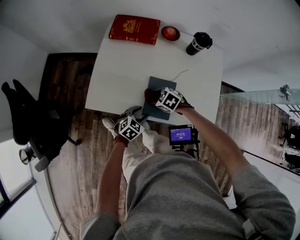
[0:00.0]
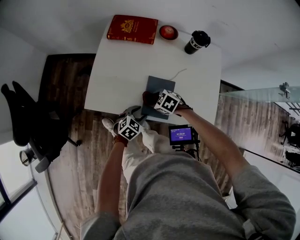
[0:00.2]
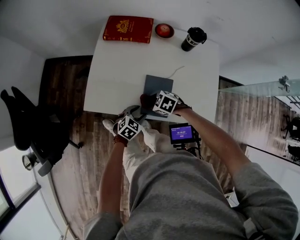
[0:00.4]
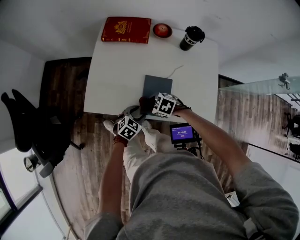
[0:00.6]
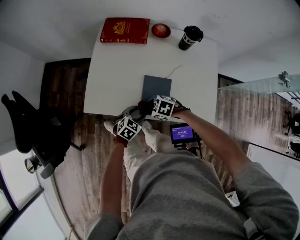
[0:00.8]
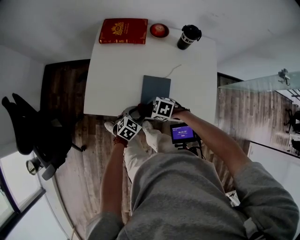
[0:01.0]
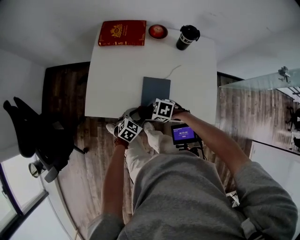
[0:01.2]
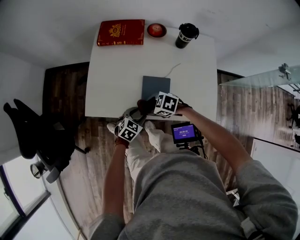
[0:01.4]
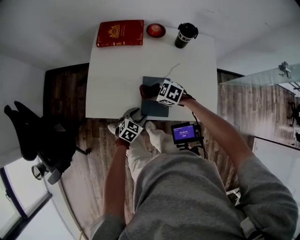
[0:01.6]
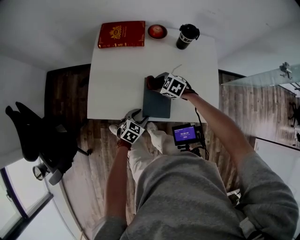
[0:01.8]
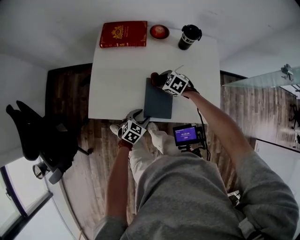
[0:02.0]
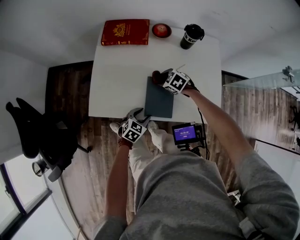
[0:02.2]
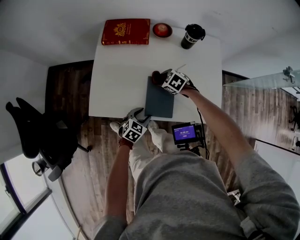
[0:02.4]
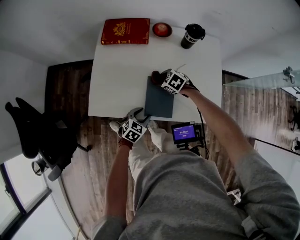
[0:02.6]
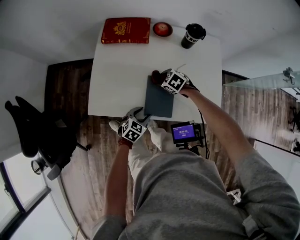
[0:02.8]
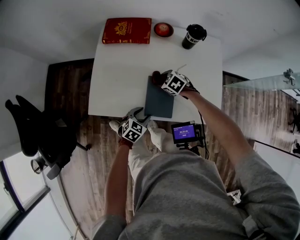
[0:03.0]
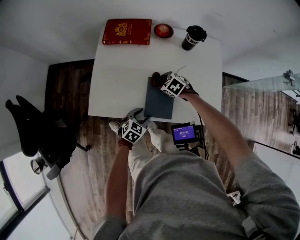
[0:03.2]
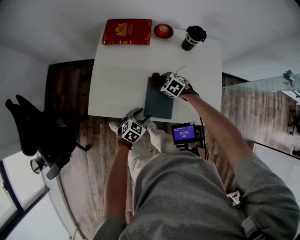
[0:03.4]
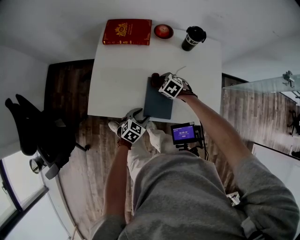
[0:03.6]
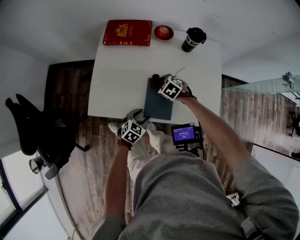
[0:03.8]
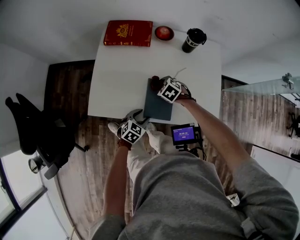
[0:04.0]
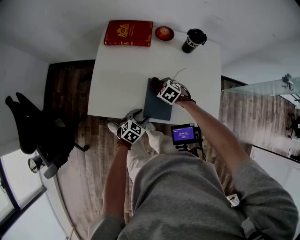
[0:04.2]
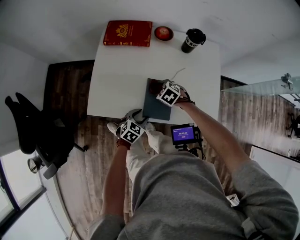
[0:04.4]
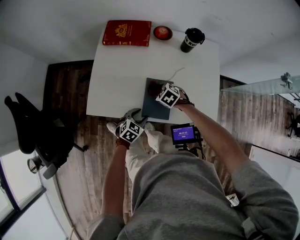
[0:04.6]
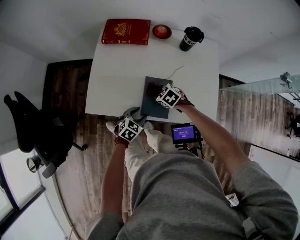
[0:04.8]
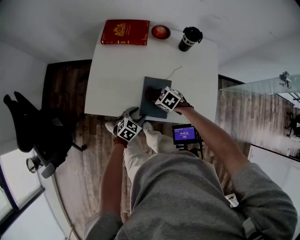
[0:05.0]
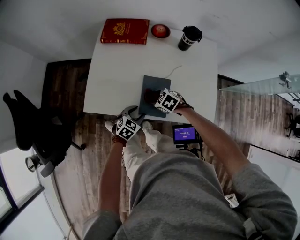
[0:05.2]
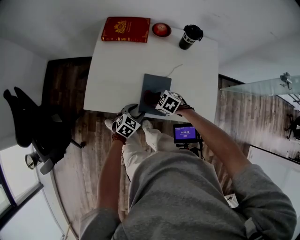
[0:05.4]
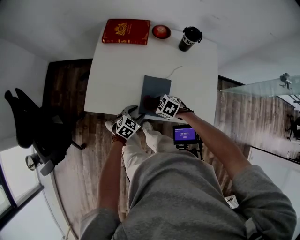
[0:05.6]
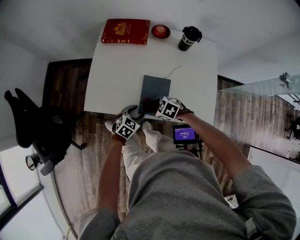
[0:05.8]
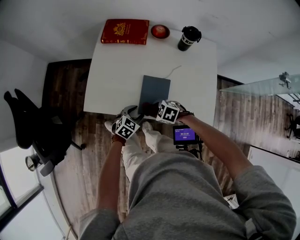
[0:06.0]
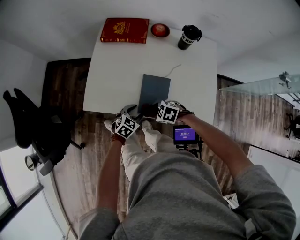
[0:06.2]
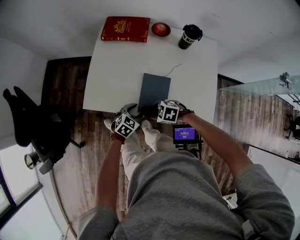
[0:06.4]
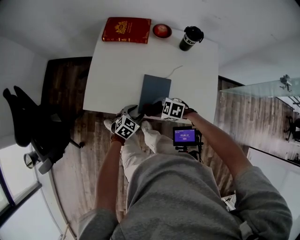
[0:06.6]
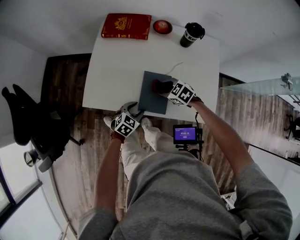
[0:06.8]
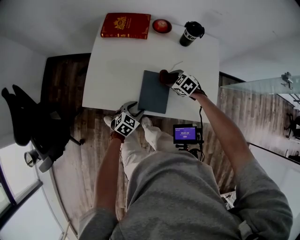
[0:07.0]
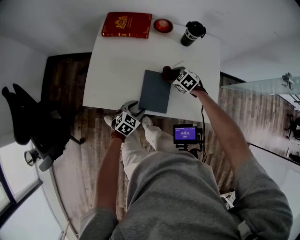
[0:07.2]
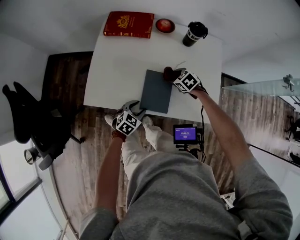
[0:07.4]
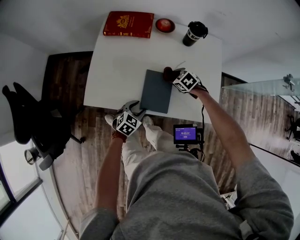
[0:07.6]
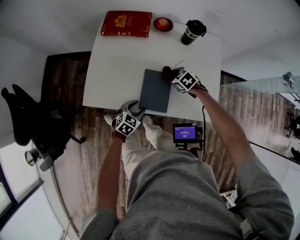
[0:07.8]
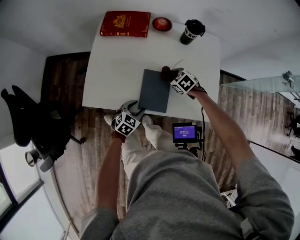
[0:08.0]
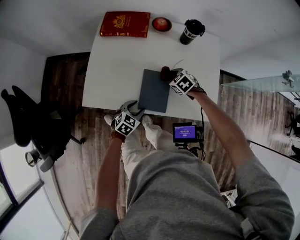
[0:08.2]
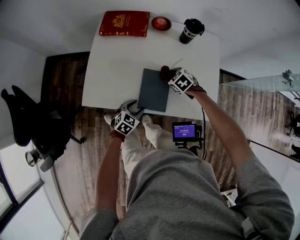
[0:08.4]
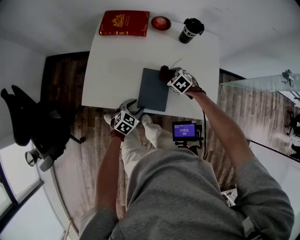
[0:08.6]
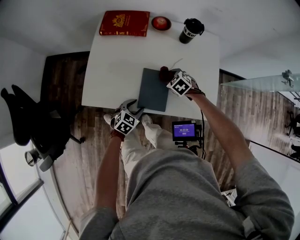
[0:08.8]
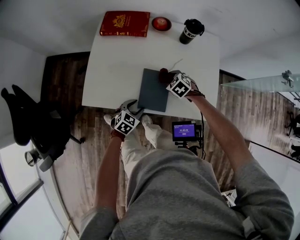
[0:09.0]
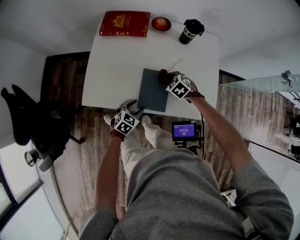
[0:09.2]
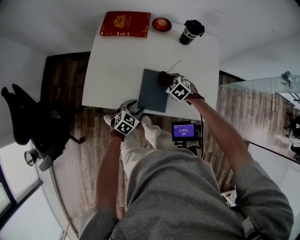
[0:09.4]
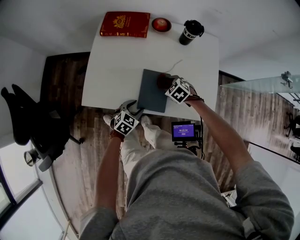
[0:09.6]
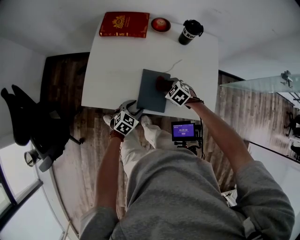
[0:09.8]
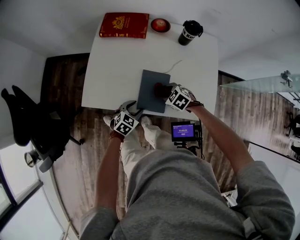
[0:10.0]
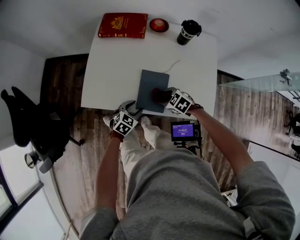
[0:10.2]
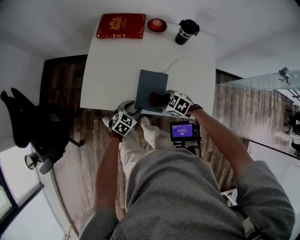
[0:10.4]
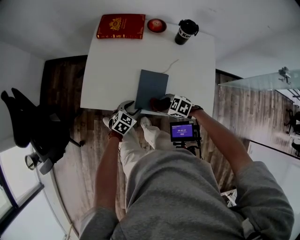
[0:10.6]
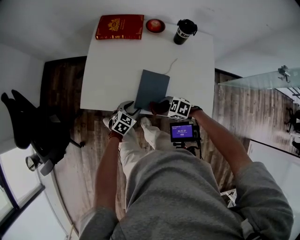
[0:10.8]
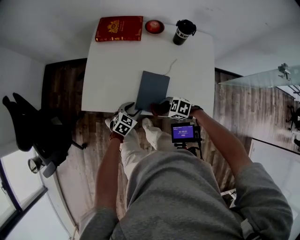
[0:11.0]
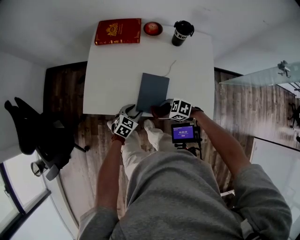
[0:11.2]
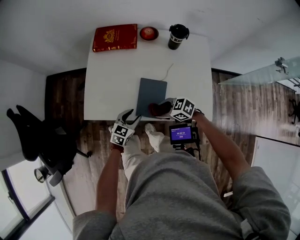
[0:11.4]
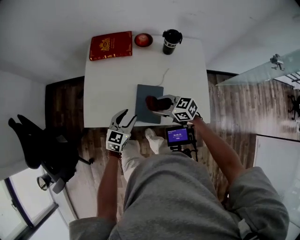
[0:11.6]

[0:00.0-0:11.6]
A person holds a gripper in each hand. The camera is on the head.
0:00.0 to 0:01.4: The right gripper shifts by about 5 cm.
0:01.4 to 0:02.8: The right gripper shifts by roughly 15 cm, and changes its angle by some 20 degrees.
0:02.8 to 0:04.4: The grippers stay close to where they were, moving slightly.
0:04.4 to 0:05.8: The right gripper changes place by roughly 10 cm.
0:05.8 to 0:07.2: The right gripper moves approximately 20 cm.
0:07.2 to 0:08.8: The grippers move only a little.
0:08.8 to 0:10.2: The right gripper is displaced backward by about 10 cm.
0:10.2 to 0:11.6: Both grippers travel together upward, about 15 cm. The left gripper swivels about 20 degrees; the right gripper tips its fingers upward by about 30 degrees.

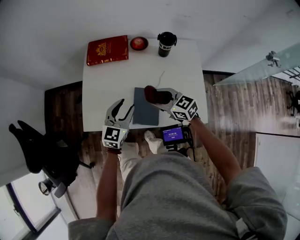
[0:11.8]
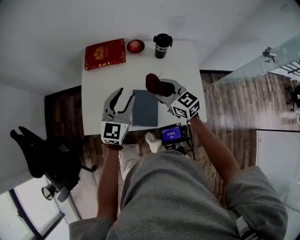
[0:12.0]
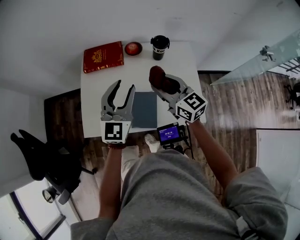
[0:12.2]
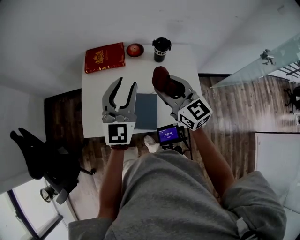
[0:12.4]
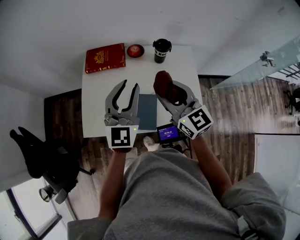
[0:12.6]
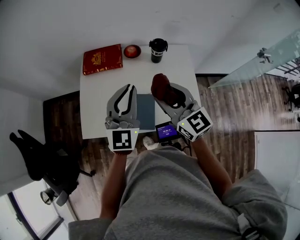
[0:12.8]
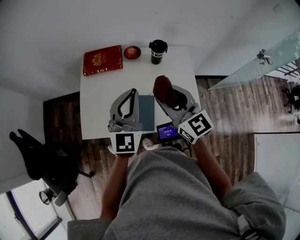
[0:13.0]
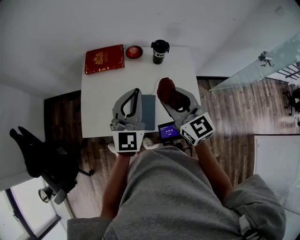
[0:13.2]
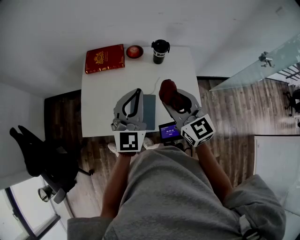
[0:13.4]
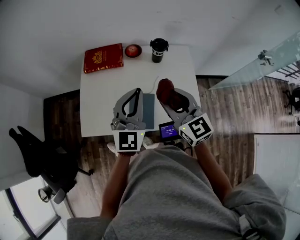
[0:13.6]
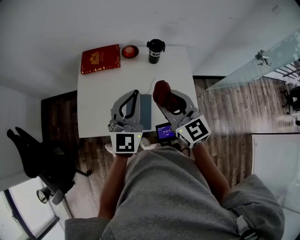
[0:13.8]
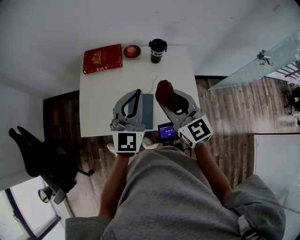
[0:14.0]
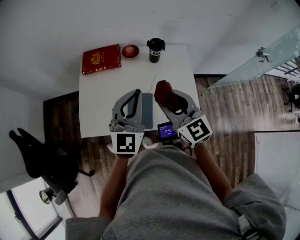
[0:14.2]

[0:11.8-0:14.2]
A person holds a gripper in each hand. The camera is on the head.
0:11.8 to 0:13.0: Both grippers travel together upward, approximately 20 cm. The left gripper turns by about 30 degrees, and closes. The right gripper rotates approximately 30 degrees.
0:13.0 to 0:14.2: The grippers move only a little.

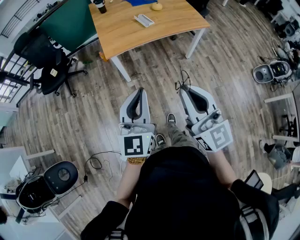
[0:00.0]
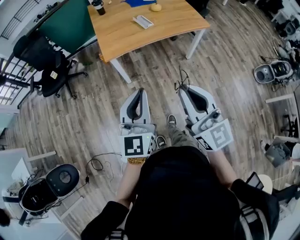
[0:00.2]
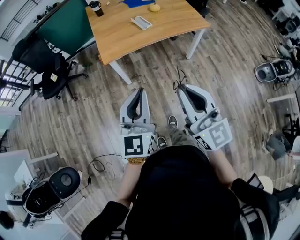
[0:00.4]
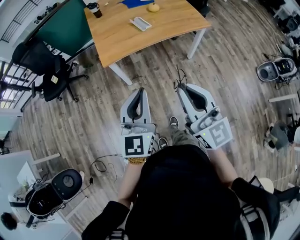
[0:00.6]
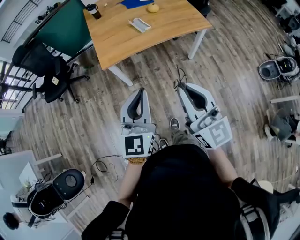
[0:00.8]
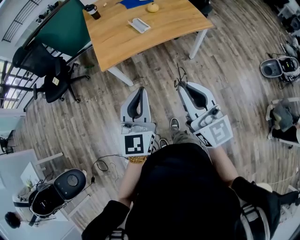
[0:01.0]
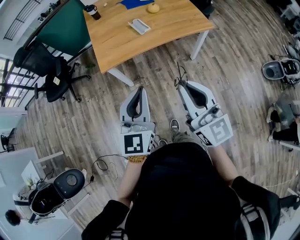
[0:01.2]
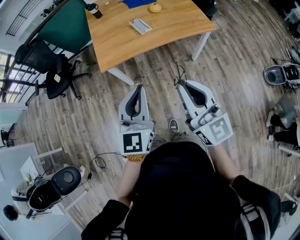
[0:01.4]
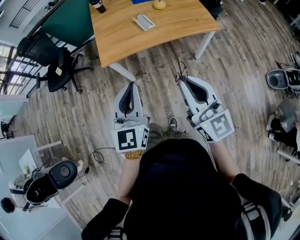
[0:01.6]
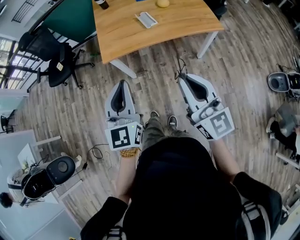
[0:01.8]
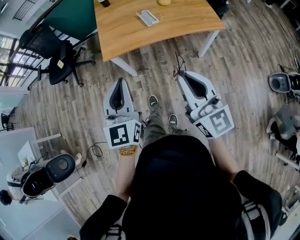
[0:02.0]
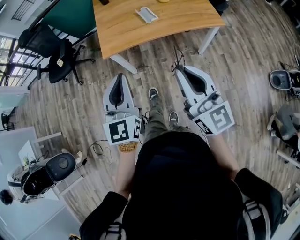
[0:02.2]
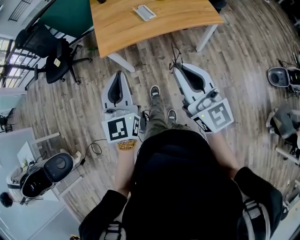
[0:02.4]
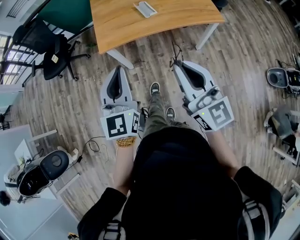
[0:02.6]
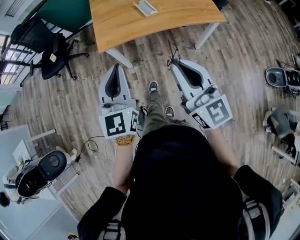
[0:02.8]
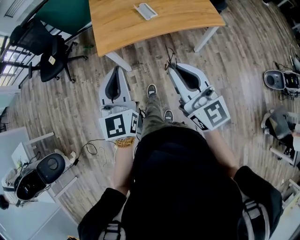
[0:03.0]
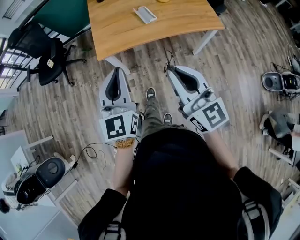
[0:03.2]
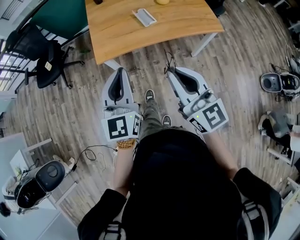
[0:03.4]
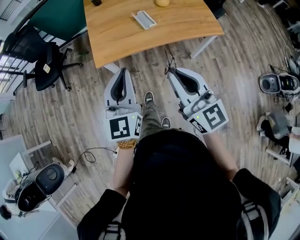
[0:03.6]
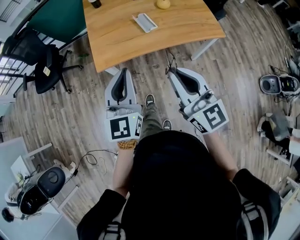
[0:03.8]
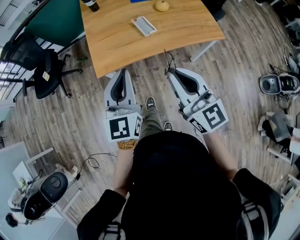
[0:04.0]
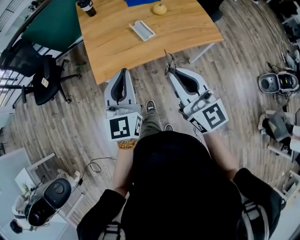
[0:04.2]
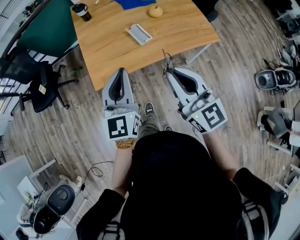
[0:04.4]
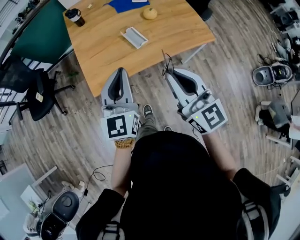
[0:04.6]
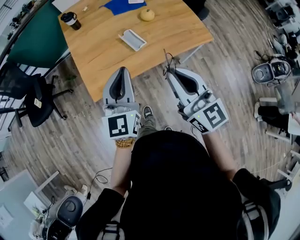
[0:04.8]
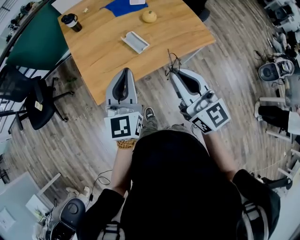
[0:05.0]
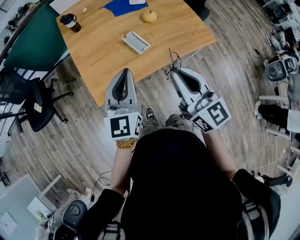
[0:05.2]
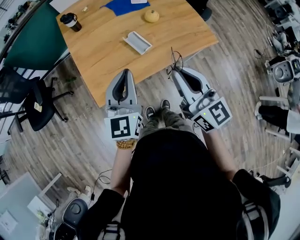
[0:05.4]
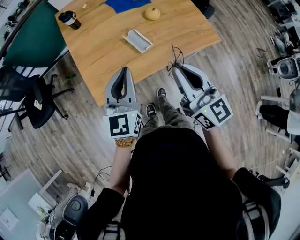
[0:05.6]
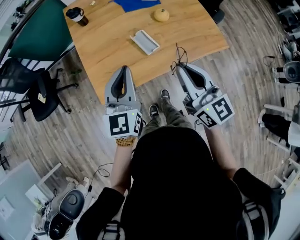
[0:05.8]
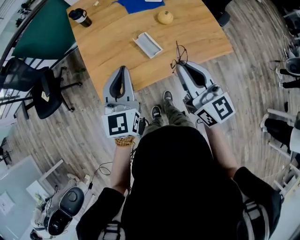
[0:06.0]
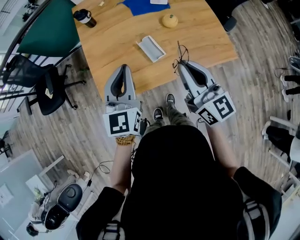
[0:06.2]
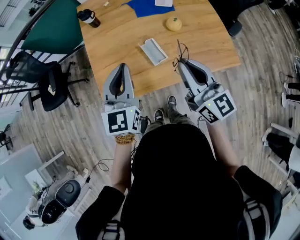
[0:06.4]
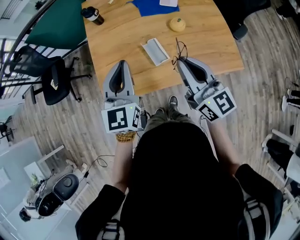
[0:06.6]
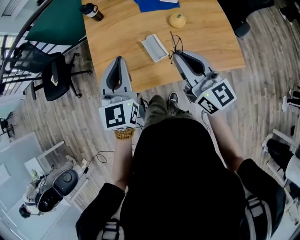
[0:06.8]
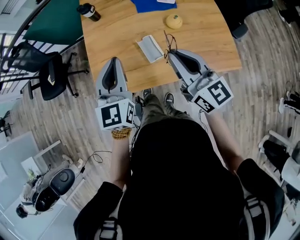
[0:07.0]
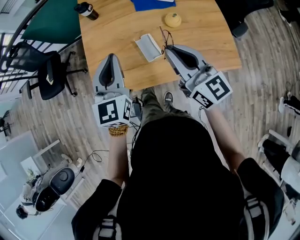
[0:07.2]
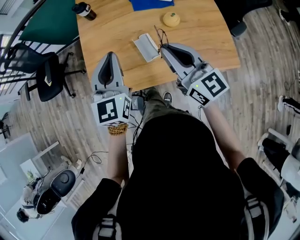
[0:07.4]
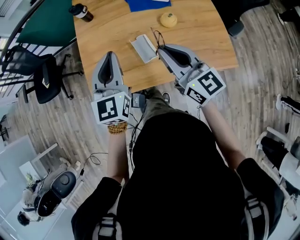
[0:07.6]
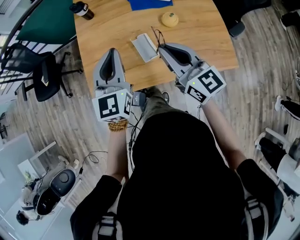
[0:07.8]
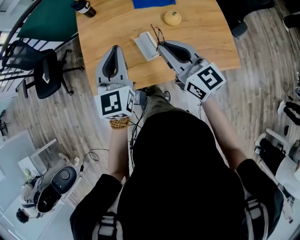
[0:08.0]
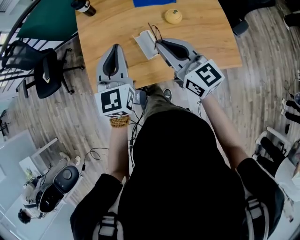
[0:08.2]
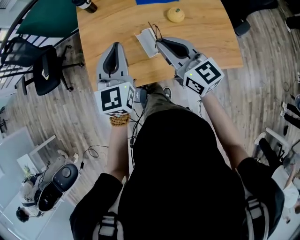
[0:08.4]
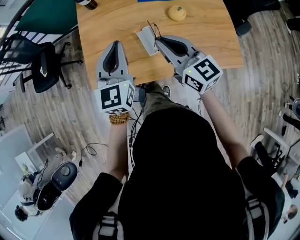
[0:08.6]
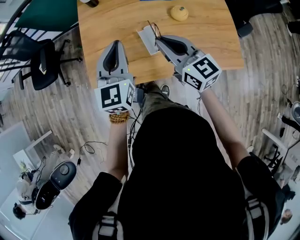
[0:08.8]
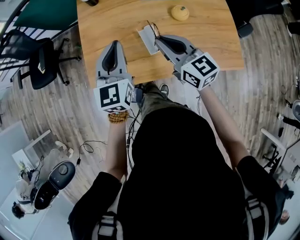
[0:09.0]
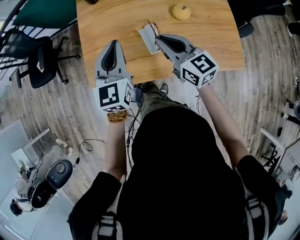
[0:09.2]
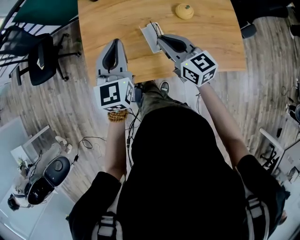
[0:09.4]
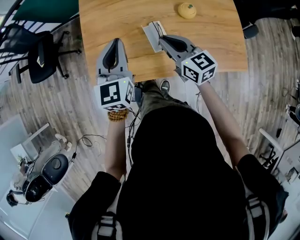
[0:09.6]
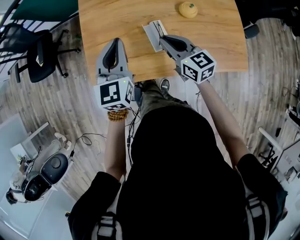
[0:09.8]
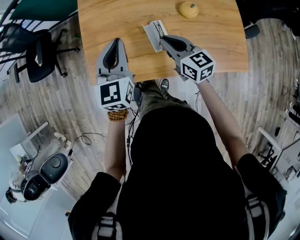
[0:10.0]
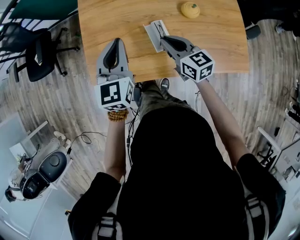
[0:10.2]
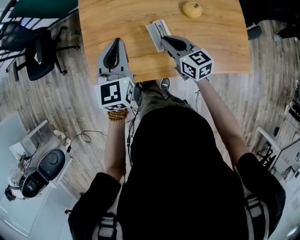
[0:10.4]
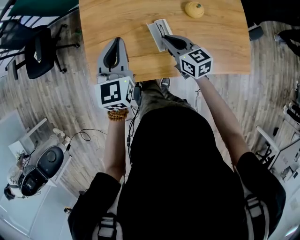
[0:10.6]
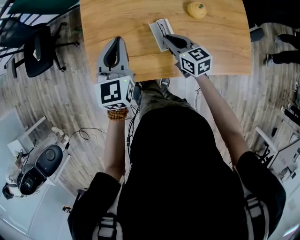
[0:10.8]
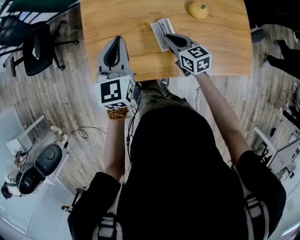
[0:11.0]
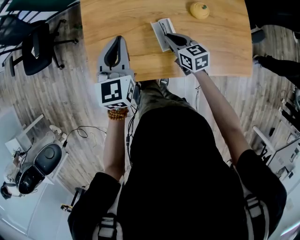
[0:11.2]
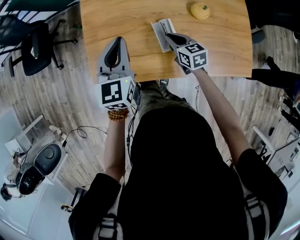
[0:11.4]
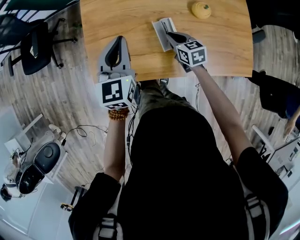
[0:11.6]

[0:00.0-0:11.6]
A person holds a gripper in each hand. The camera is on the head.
0:00.0 to 0:01.4: Both grippers travel together forward and to the right, about 20 cm.
0:01.4 to 0:02.8: The right gripper ends up approximately 5 cm from where it was. The left gripper moves to the left, some 5 cm.
0:02.8 to 0:04.4: Both grippers move forward, some 20 cm.
0:04.4 to 0:05.8: Both grippers travel together forward, about 15 cm.
0:05.8 to 0:07.2: The two grippers go some 10 cm forward and to the right.
0:07.2 to 0:08.8: The left gripper changes place by about 5 cm. The right gripper heads downward and forward, covering some 10 cm.
0:08.8 to 0:10.2: The right gripper goes approximately 10 cm downward; the left gripper ends up about 5 cm from where it was.
0:10.2 to 0:11.6: The left gripper shifts by about 5 cm. Meanwhile the right gripper moves downward, approximately 15 cm.
